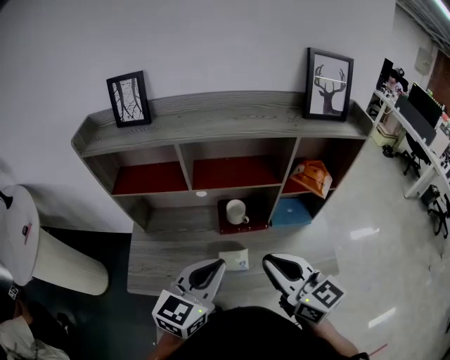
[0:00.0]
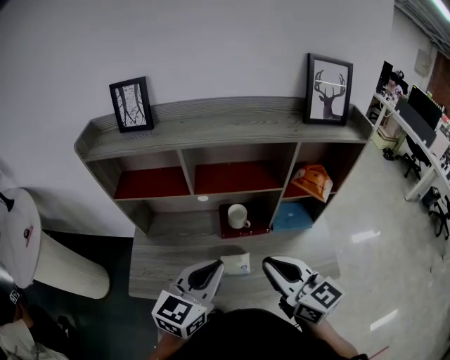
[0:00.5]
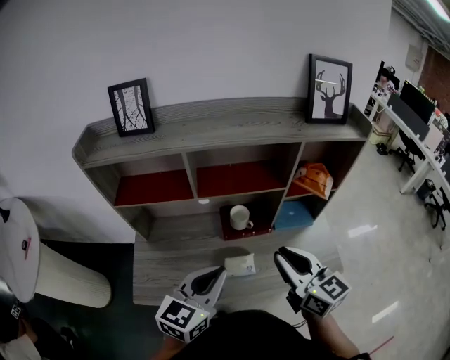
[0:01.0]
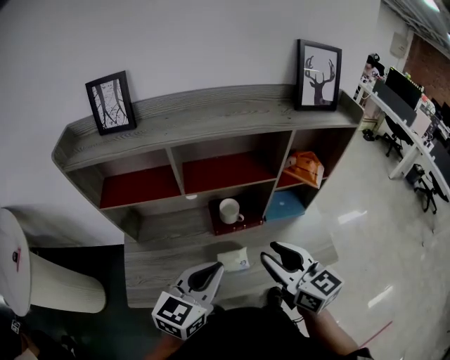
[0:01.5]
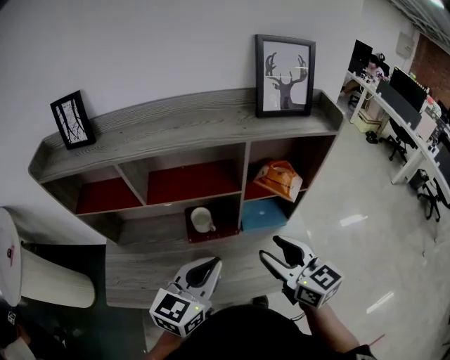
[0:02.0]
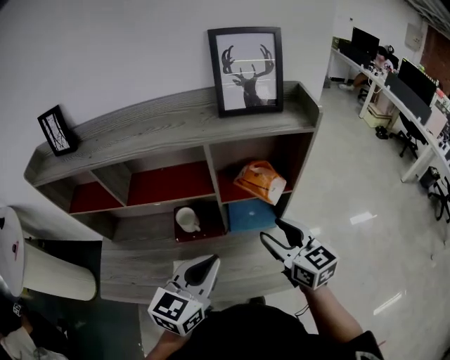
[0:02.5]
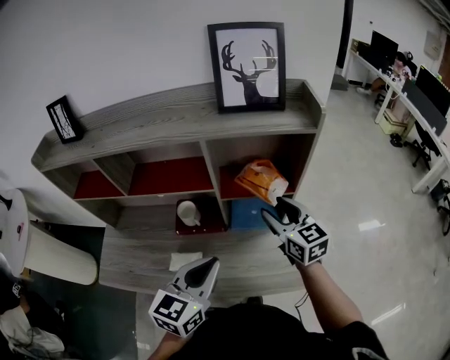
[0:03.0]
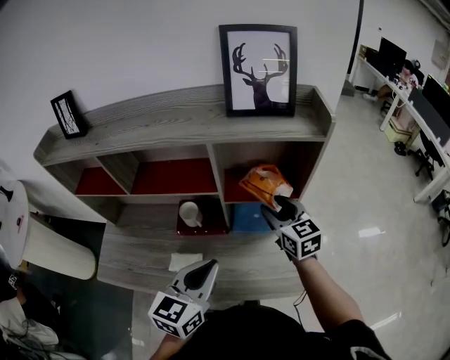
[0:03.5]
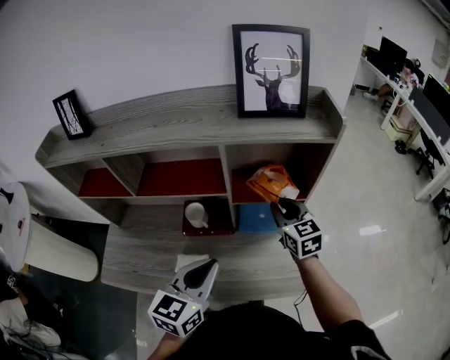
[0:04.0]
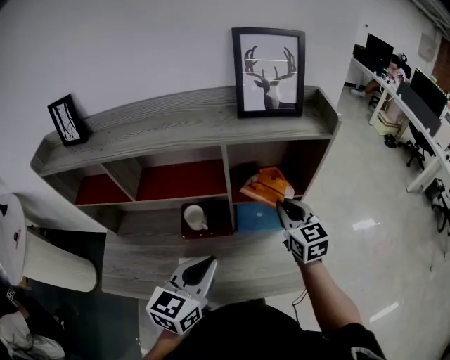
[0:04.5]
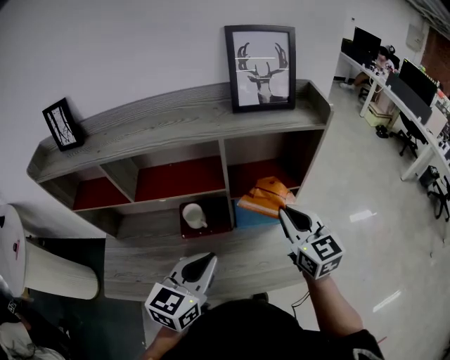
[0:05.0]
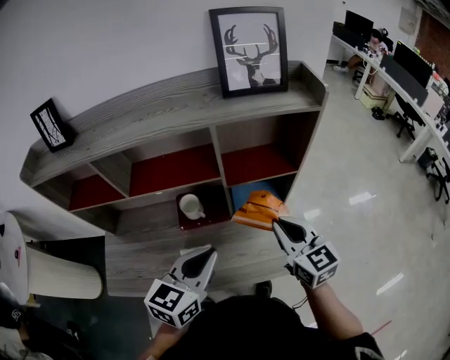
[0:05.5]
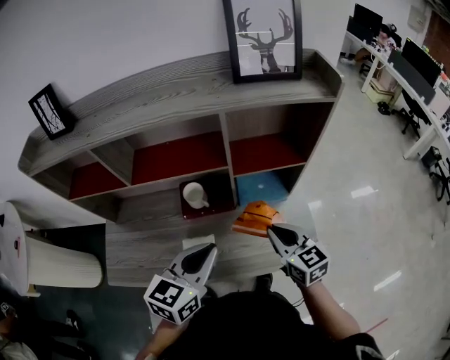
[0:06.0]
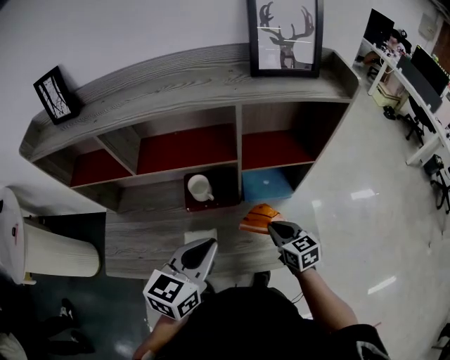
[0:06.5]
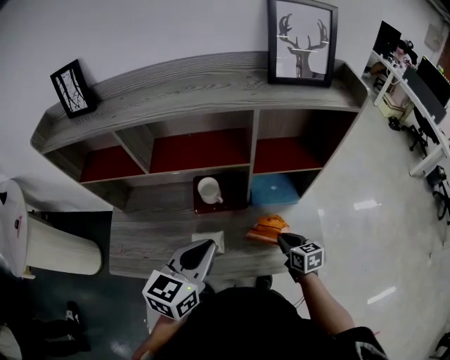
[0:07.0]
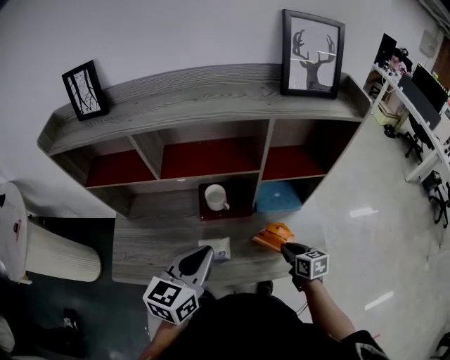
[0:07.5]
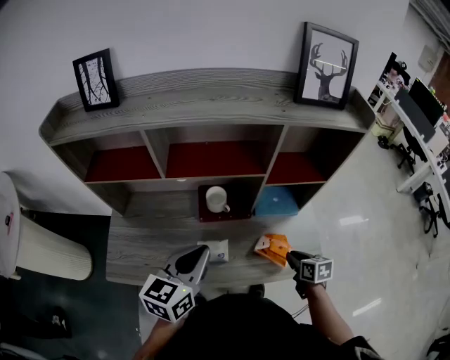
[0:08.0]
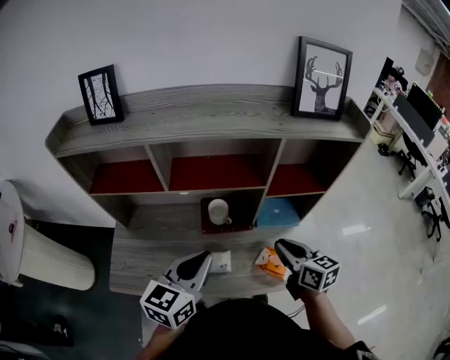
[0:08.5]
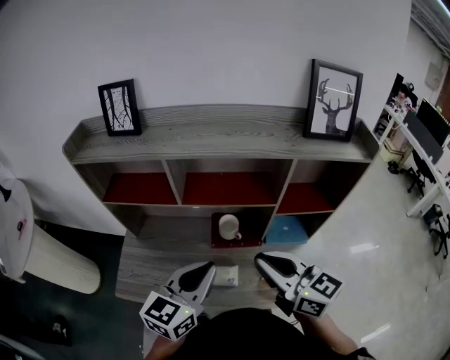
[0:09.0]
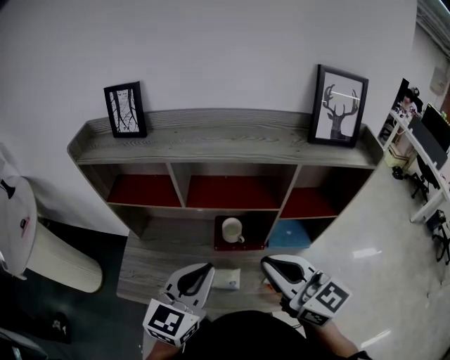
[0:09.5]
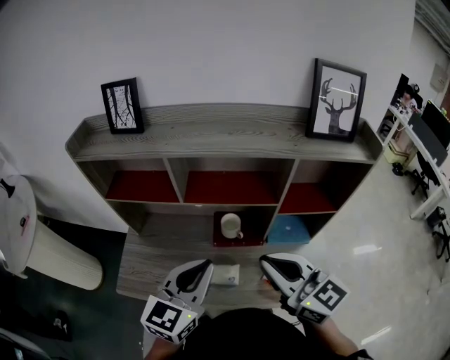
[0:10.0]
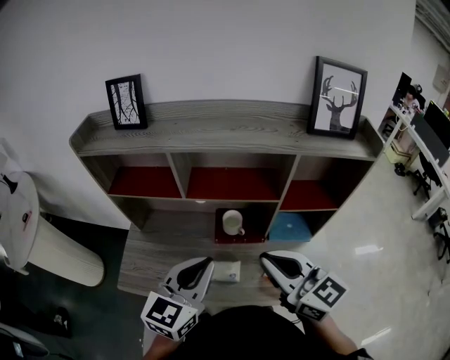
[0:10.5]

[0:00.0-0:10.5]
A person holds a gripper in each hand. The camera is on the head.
0:00.0 to 0:02.0: Both grippers travel together to the right and forward, approximately 15 cm. The right gripper opens.
0:02.0 to 0:04.0: The right gripper heads forward, to the right and downward, covering some 20 cm, and closes up. The left gripper shifts some 5 cm to the right.
0:04.0 to 0:06.5: The left gripper goes some 5 cm to the left; the right gripper moves backward and downward, some 20 cm.
0:06.5 to 0:08.5: The right gripper is displaced upward and to the left by about 15 cm; the left gripper goes approximately 10 cm to the left.
0:08.5 to 0:10.5: The left gripper ends up approximately 5 cm from where it was. Meanwhile the right gripper moves upward and to the left, approximately 20 cm, and swivels approximately 30 degrees.

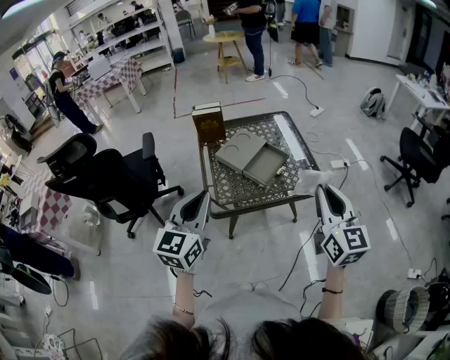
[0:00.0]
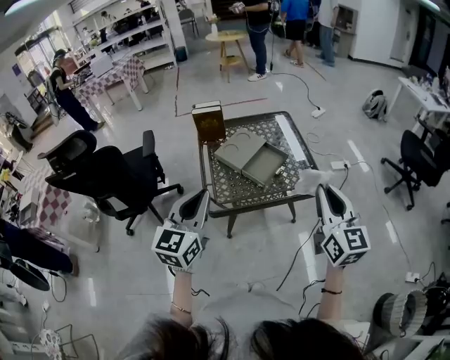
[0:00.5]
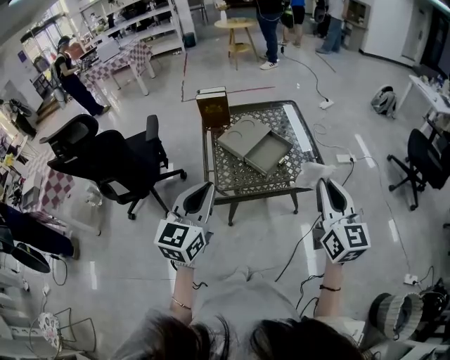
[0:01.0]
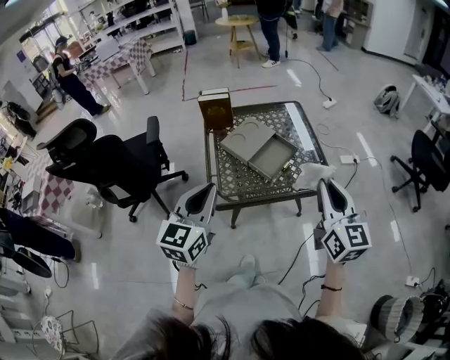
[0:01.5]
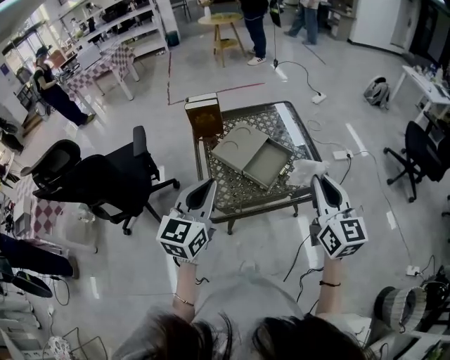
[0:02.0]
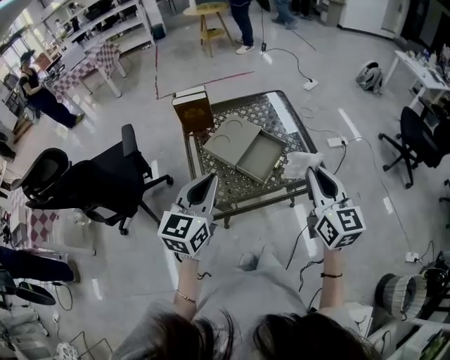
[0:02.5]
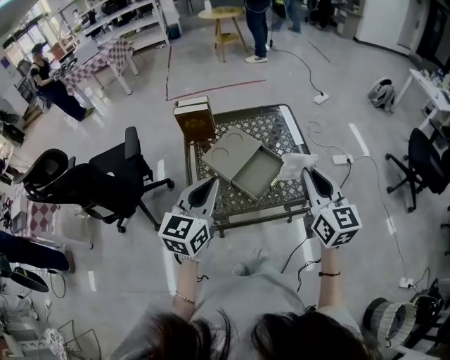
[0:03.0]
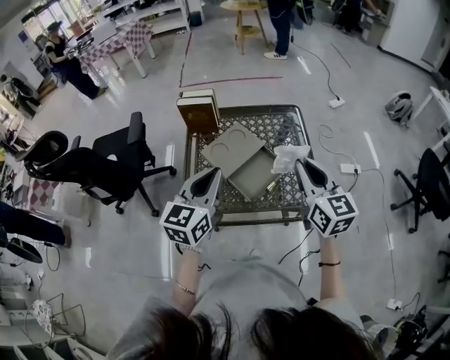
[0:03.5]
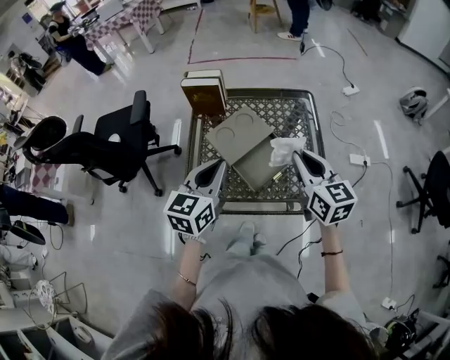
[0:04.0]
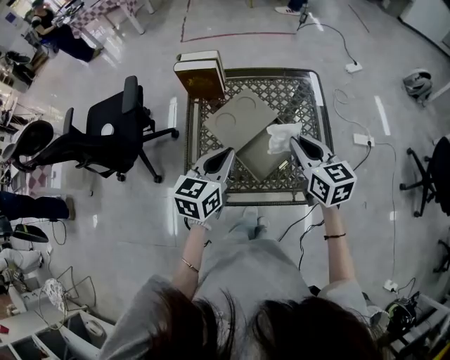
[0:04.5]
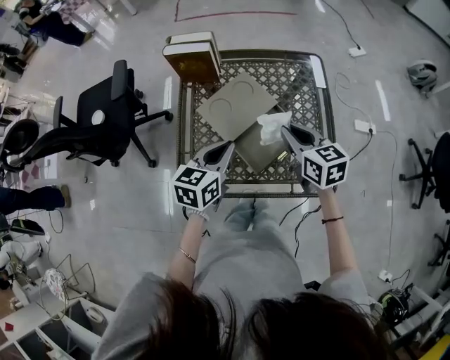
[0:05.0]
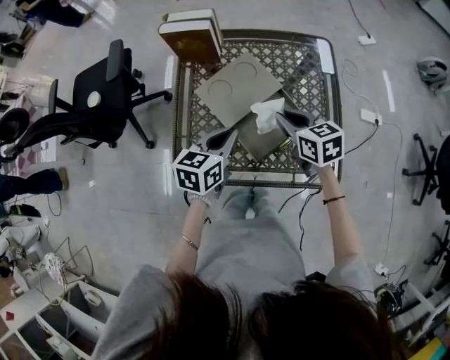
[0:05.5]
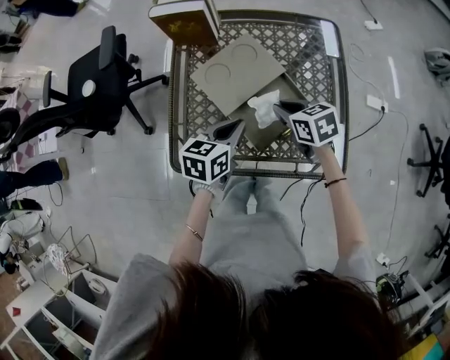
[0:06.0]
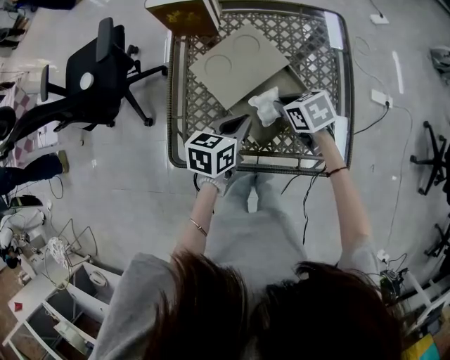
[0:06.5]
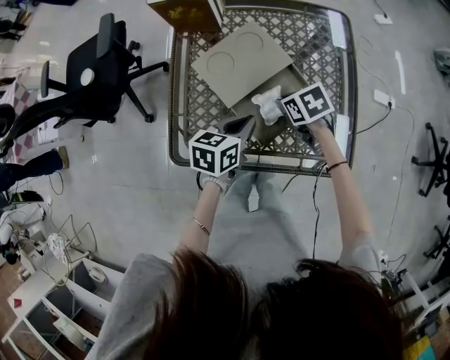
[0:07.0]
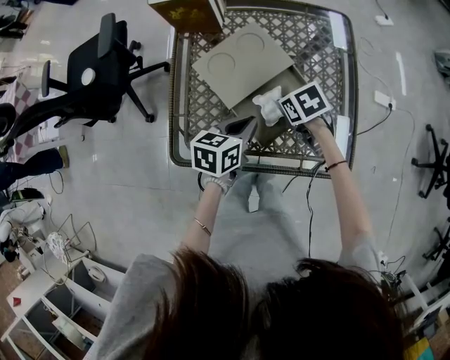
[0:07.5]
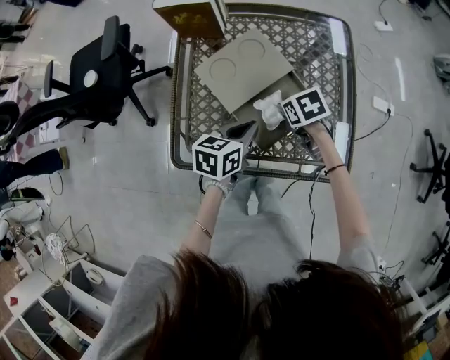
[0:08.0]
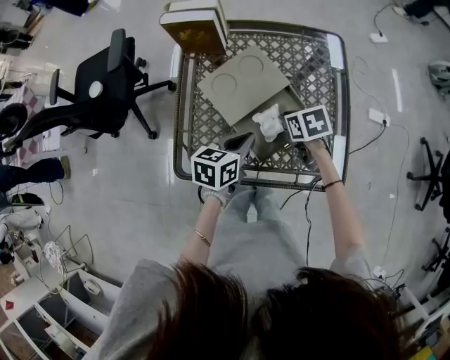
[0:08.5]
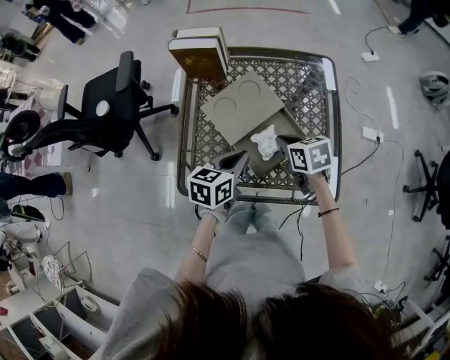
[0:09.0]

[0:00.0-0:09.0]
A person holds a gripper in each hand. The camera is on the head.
0:00.0 to 0:02.0: The grippers both shift forward by some 10 cm.
0:02.0 to 0:04.5: The left gripper shifts approximately 25 cm forward, downward and to the right, and turns by approximately 20 degrees; the right gripper is displaced forward and downward by roughly 30 cm, and changes its angle by some 30 degrees.
0:04.5 to 0:07.0: Both grippers move downward, some 20 cm. The right gripper points its fingers about 40 degrees further downward, while the left gripper rotates roughly 30 degrees.
0:07.0 to 0:09.0: The grippers both shift upward by about 5 cm.

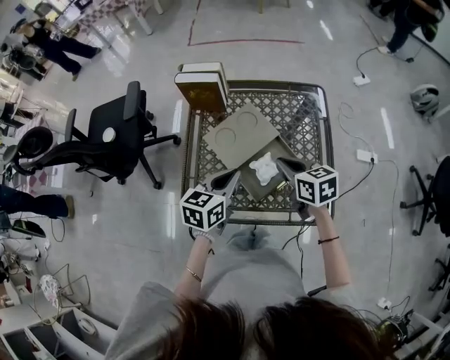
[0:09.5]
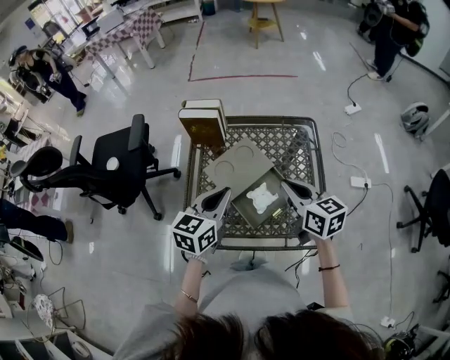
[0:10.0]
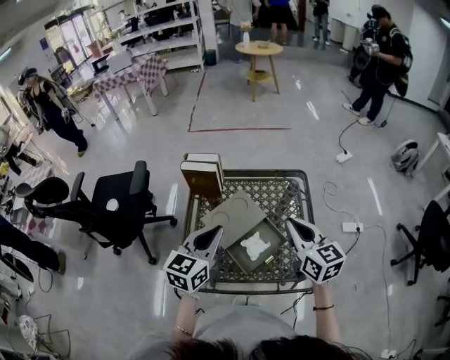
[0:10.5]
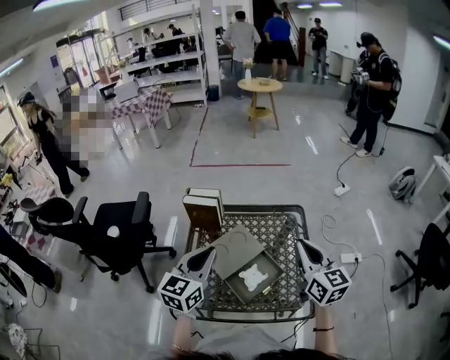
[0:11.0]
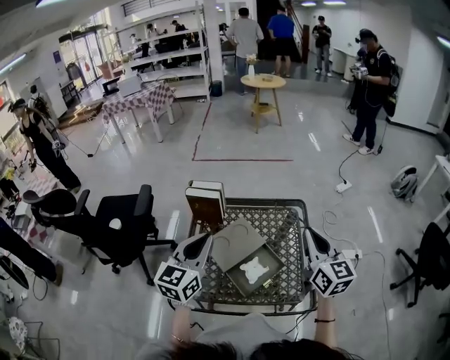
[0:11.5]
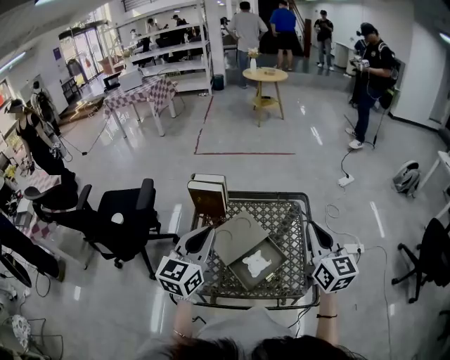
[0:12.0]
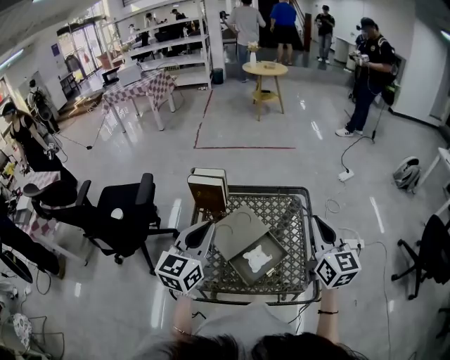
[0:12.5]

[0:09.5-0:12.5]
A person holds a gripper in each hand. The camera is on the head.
0:09.5 to 0:11.0: The left gripper heads upward, covering about 15 cm, and rotates approximately 30 degrees. The right gripper travels upward and to the right by some 20 cm, and rotates about 40 degrees.
0:11.0 to 0:12.5: The grippers make only small movements.

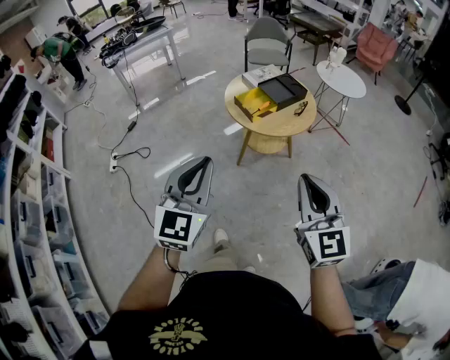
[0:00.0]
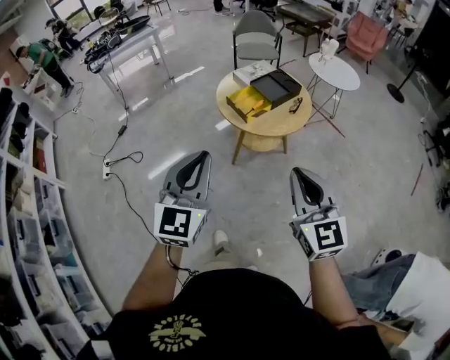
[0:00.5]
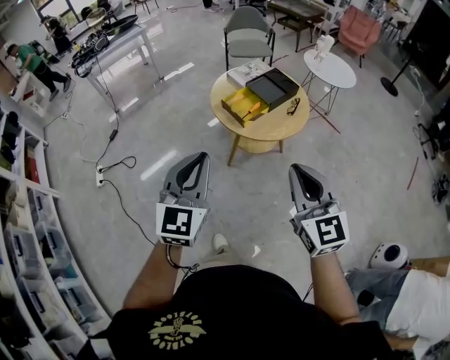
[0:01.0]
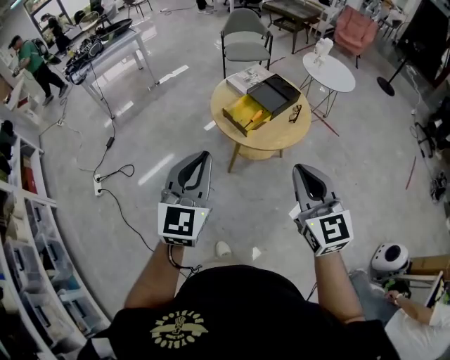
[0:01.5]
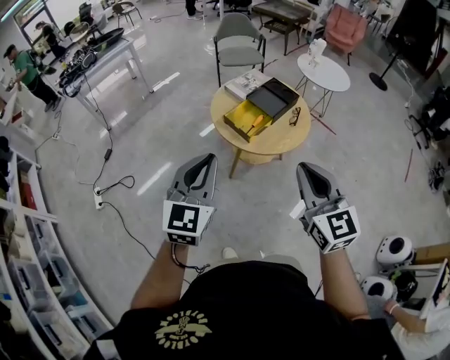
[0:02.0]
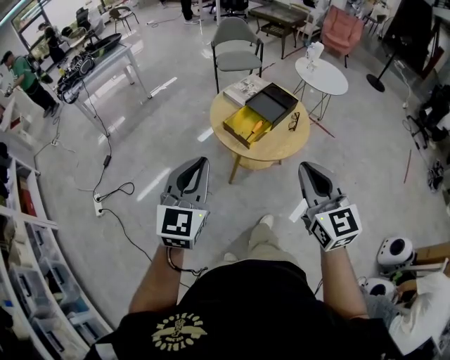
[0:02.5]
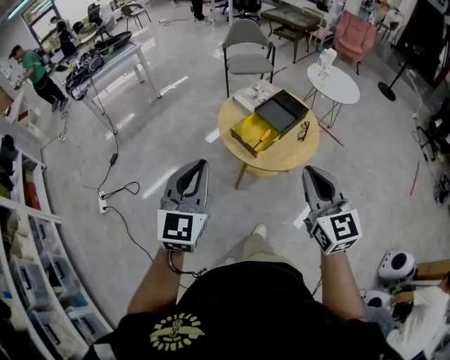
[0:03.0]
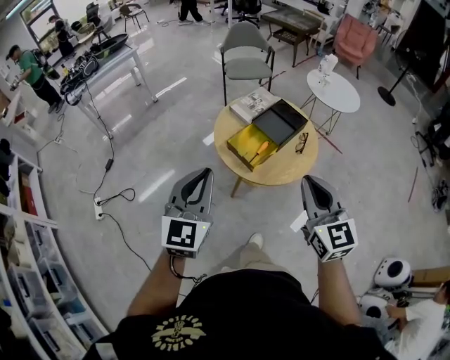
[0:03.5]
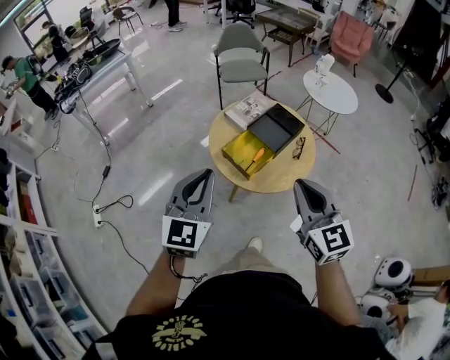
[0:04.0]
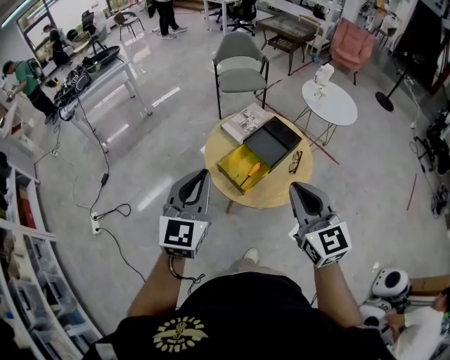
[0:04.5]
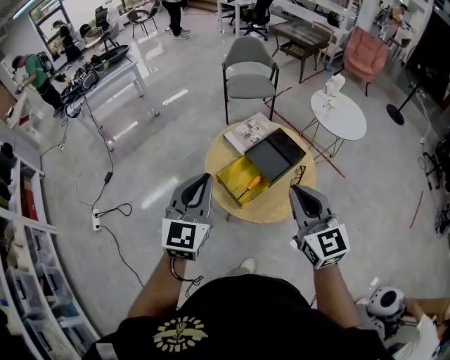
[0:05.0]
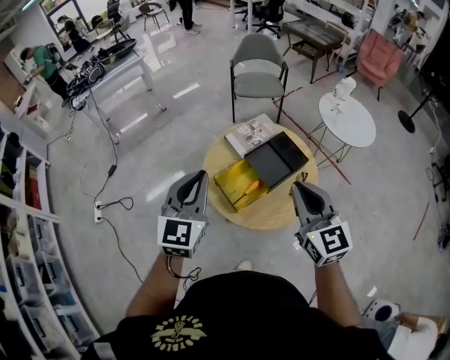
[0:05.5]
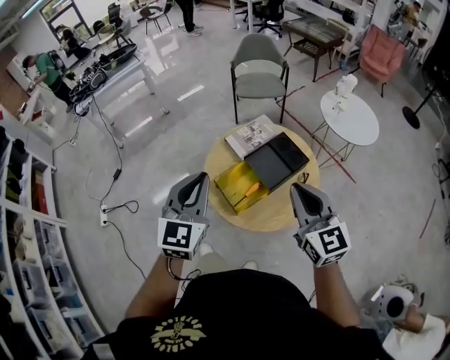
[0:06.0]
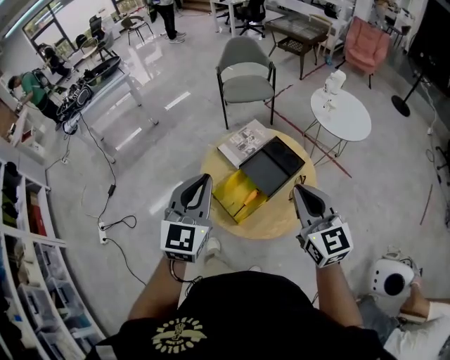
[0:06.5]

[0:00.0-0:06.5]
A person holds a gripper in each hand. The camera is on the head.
0:00.0 to 0:02.0: The left gripper goes roughly 25 cm forward; the right gripper is displaced forward and to the left by roughly 20 cm.
0:02.0 to 0:04.5: The two grippers go approximately 20 cm forward.
0:04.5 to 0:06.5: Both grippers travel together forward and to the right, roughly 15 cm.
